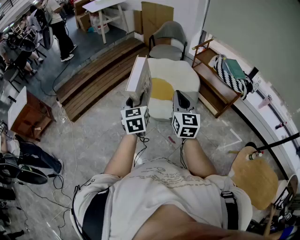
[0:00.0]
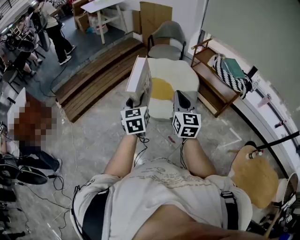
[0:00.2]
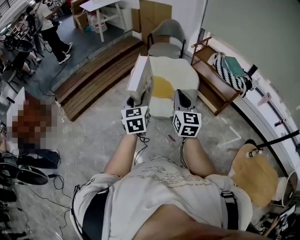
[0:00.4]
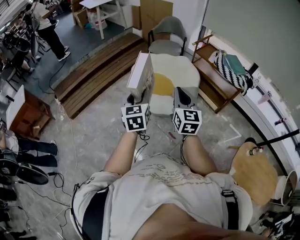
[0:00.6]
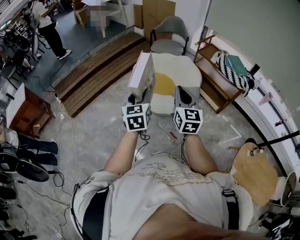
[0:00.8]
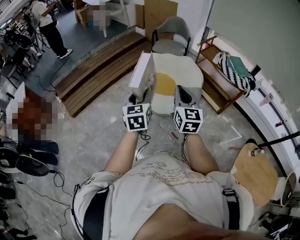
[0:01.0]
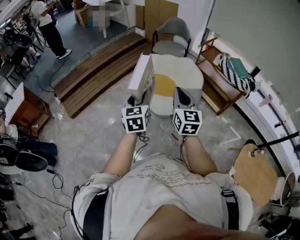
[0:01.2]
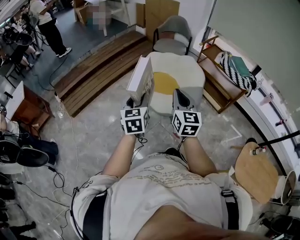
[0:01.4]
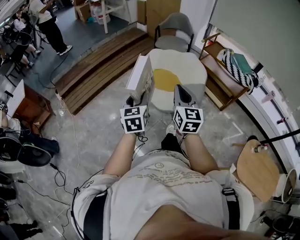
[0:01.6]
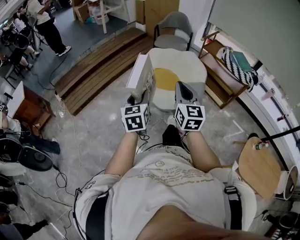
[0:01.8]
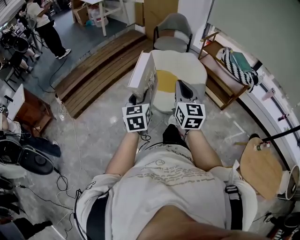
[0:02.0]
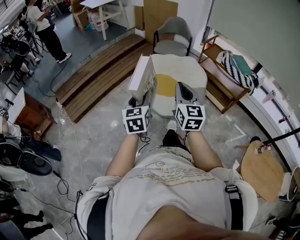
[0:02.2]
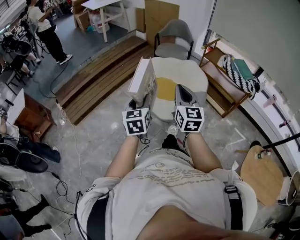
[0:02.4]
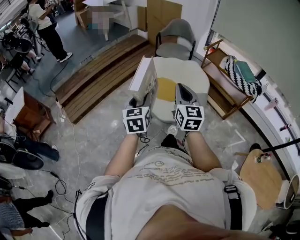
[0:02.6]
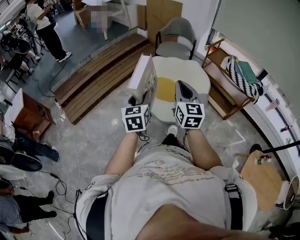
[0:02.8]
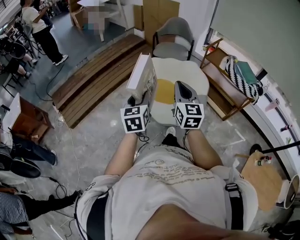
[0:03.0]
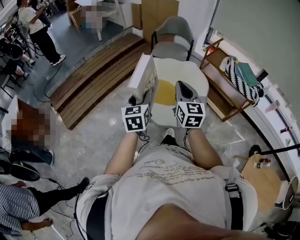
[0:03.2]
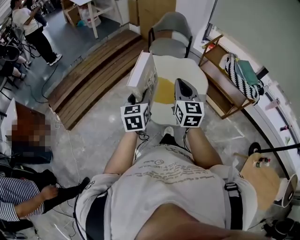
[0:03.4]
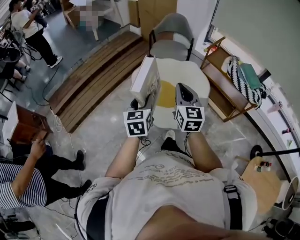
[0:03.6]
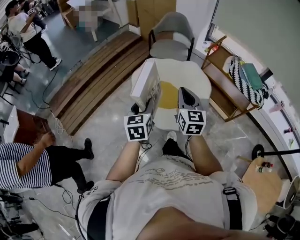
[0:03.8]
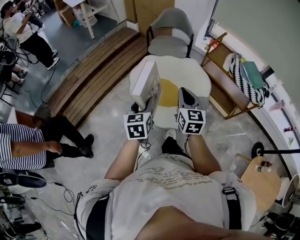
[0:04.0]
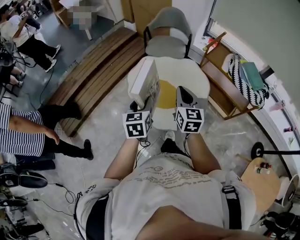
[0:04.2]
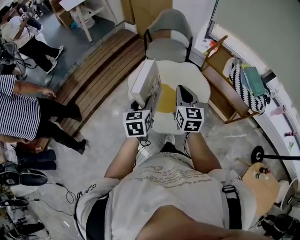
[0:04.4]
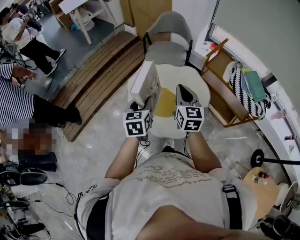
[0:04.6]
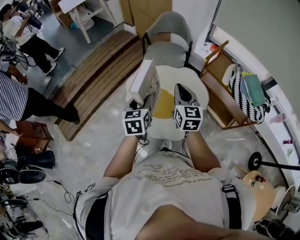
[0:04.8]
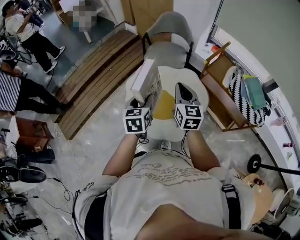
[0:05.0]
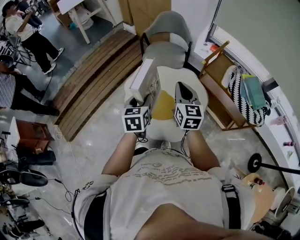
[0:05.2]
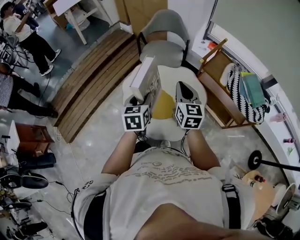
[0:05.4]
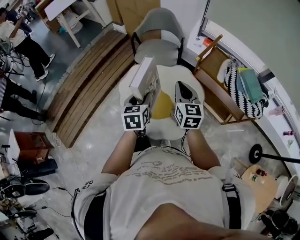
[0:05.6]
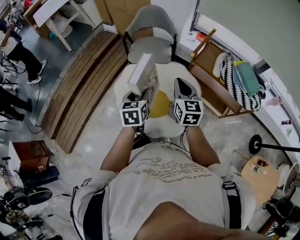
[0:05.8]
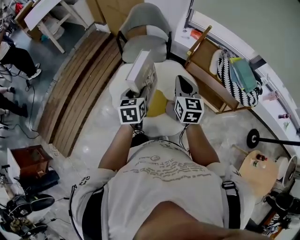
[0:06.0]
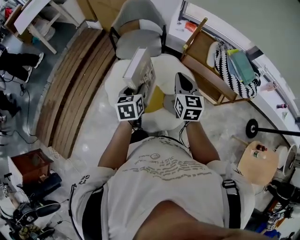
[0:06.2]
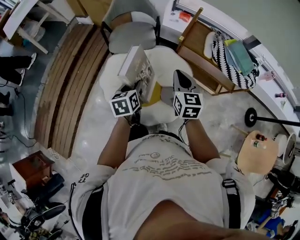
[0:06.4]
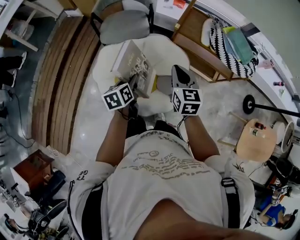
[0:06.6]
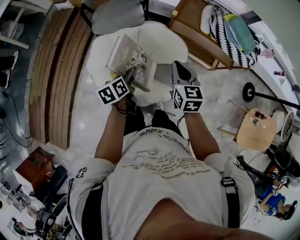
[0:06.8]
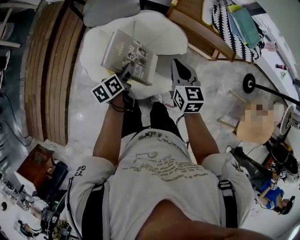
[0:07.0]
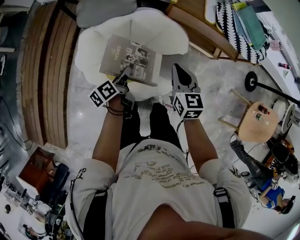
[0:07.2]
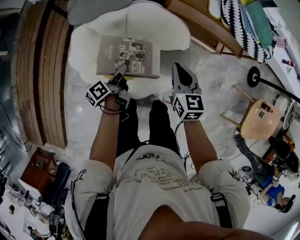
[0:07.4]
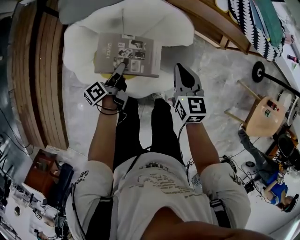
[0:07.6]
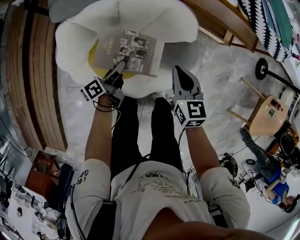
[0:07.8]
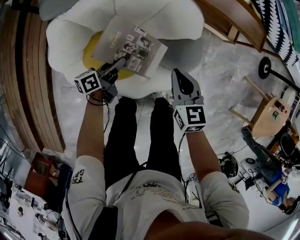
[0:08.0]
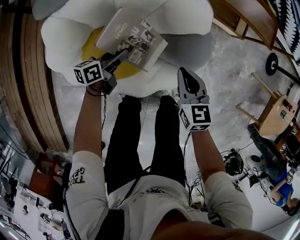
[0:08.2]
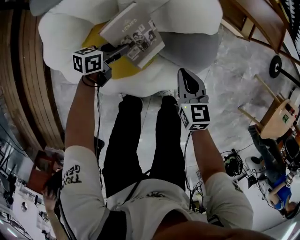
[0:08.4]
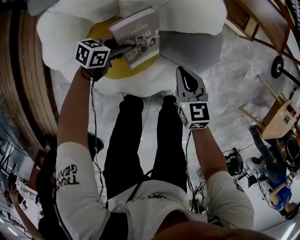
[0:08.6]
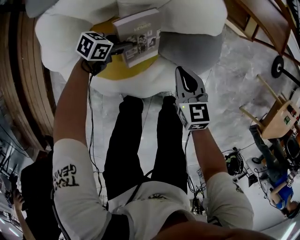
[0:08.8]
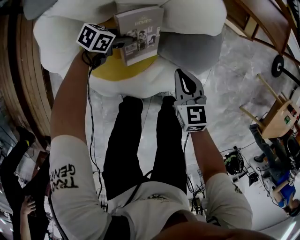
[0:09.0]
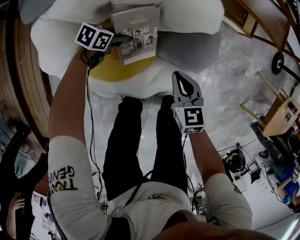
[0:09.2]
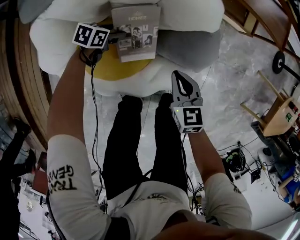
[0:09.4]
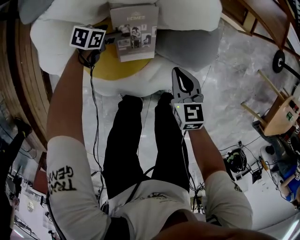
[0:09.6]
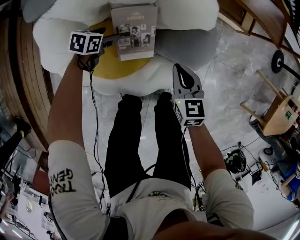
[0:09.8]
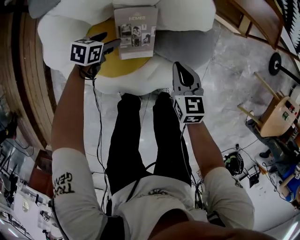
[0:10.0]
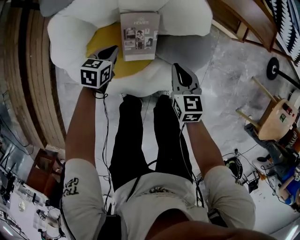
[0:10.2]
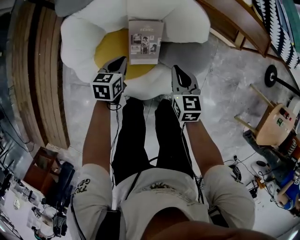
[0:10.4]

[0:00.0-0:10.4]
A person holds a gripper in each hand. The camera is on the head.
0:00.0 to 0:01.4: Both grippers travel together to the left, about 10 cm.
0:01.4 to 0:03.0: The grippers both shift forward by about 15 cm.
0:03.0 to 0:04.4: Both grippers travel together forward, about 20 cm.
0:04.4 to 0:06.0: The right gripper goes roughly 15 cm forward and to the right. The left gripper travels forward by approximately 20 cm.
0:06.0 to 0:07.4: The two grippers go about 30 cm downward. The left gripper rotates around the line of its fingers by approximately 60 degrees, counterclockwise from behind. Meanwhile the right gripper changes its angle by approximately 20 degrees.
0:07.4 to 0:09.0: Both grippers travel together downward, some 30 cm. The left gripper turns by about 80 degrees.
0:09.0 to 0:10.4: The right gripper goes about 10 cm upward. The left gripper shifts approximately 20 cm upward, rotates approximately 40 degrees, and closes.

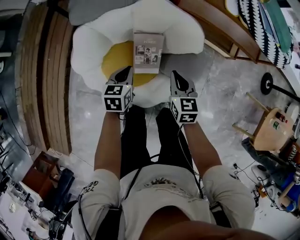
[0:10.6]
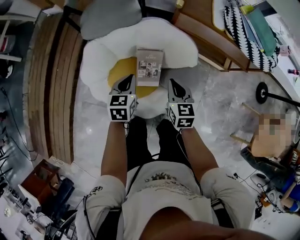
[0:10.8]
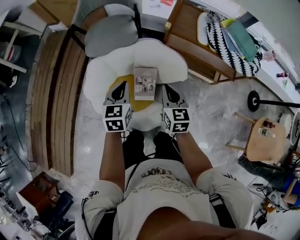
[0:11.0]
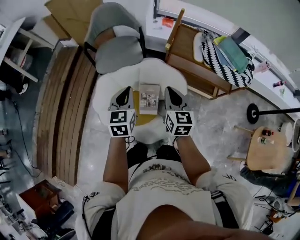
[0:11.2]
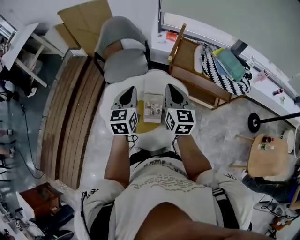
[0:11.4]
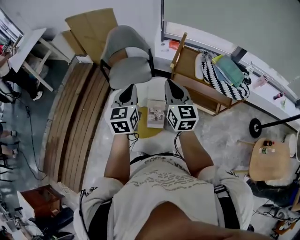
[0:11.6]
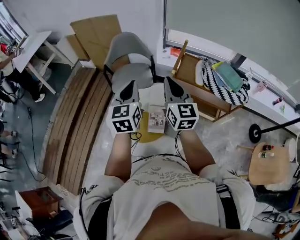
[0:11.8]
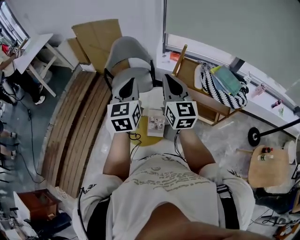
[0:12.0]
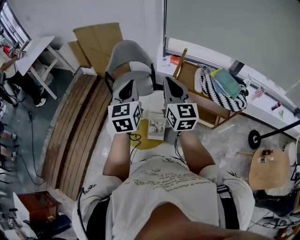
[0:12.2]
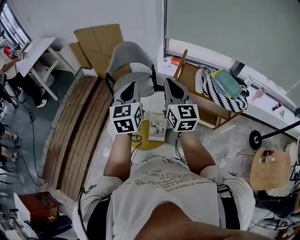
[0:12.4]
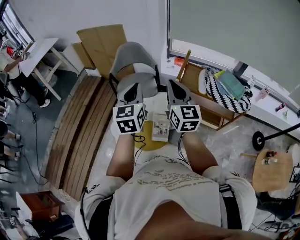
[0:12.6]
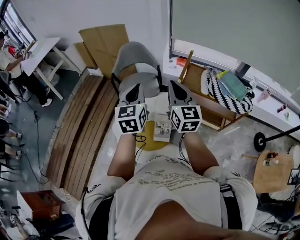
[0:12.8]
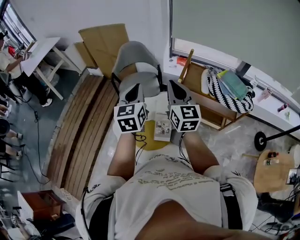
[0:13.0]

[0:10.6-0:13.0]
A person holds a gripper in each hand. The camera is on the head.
0:10.6 to 0:11.8: Both grippers travel together upward, roughly 50 cm. The left gripper tilts its fingers some 40 degrees upward, while the right gripper angles its fingers upward, by some 40 degrees.
0:11.8 to 0:13.0: There are only small adjustments of the grippers.

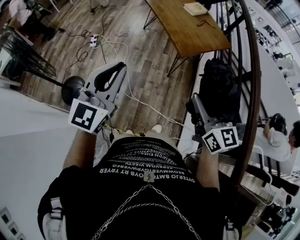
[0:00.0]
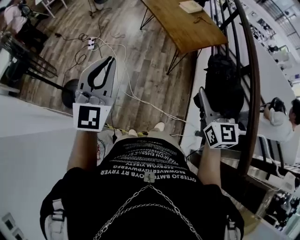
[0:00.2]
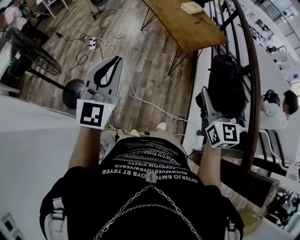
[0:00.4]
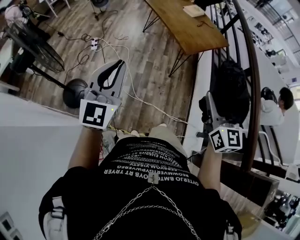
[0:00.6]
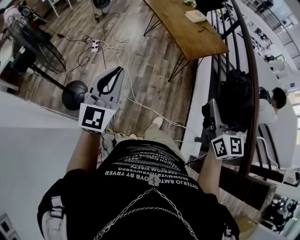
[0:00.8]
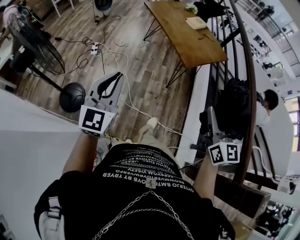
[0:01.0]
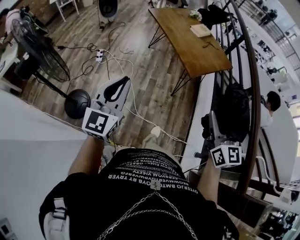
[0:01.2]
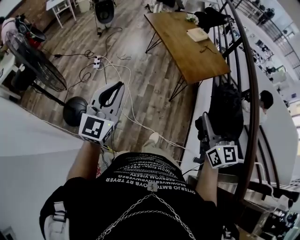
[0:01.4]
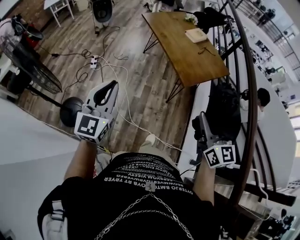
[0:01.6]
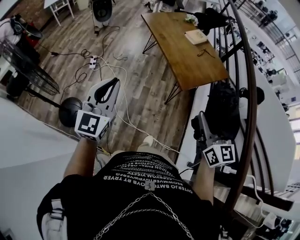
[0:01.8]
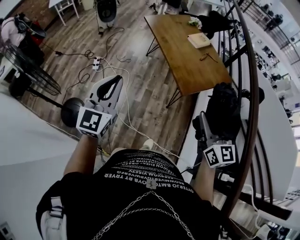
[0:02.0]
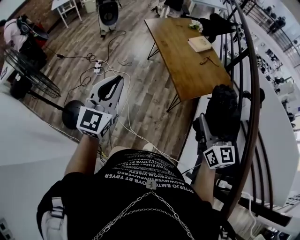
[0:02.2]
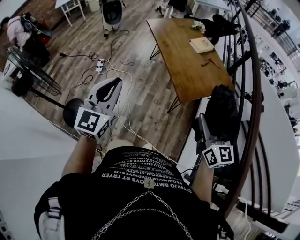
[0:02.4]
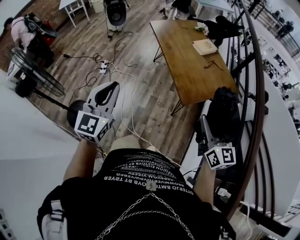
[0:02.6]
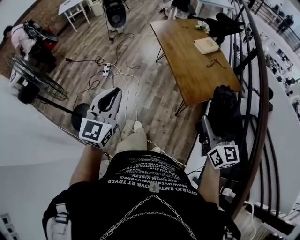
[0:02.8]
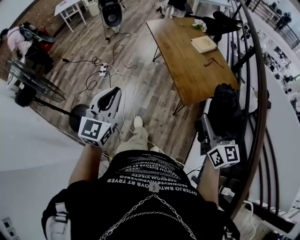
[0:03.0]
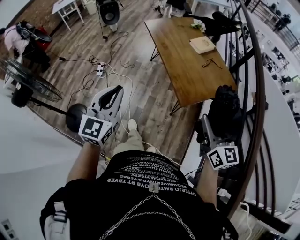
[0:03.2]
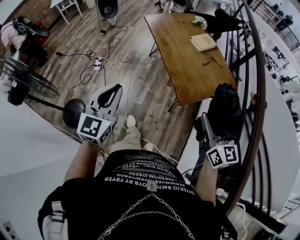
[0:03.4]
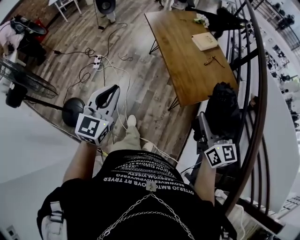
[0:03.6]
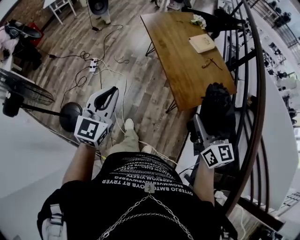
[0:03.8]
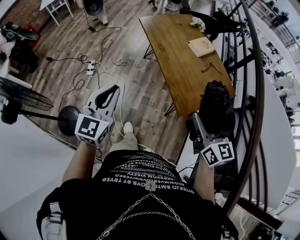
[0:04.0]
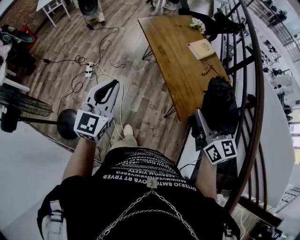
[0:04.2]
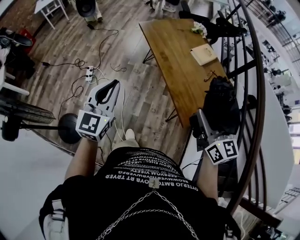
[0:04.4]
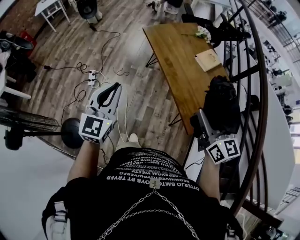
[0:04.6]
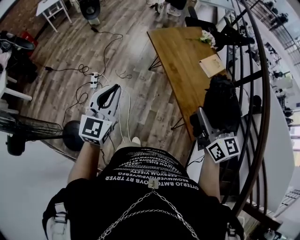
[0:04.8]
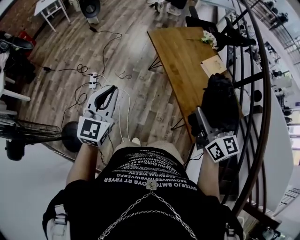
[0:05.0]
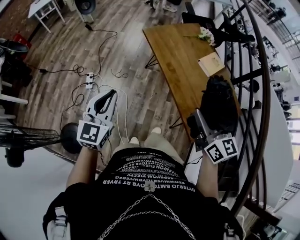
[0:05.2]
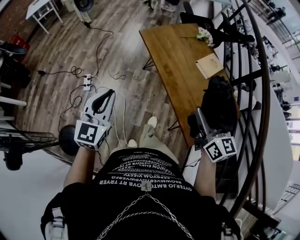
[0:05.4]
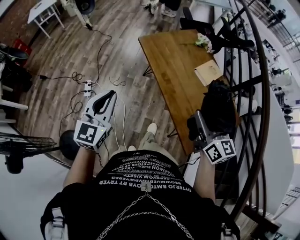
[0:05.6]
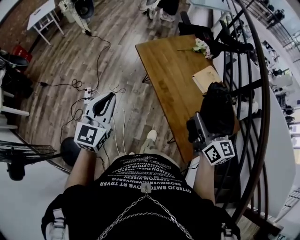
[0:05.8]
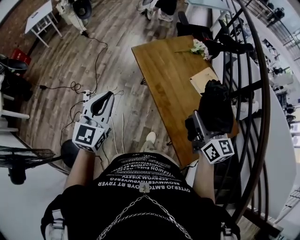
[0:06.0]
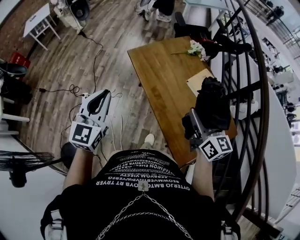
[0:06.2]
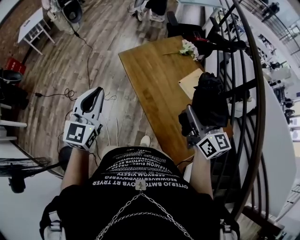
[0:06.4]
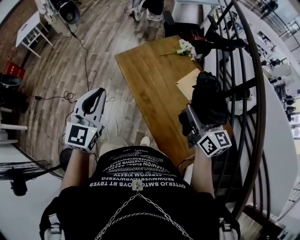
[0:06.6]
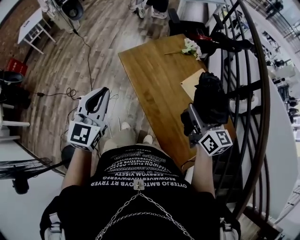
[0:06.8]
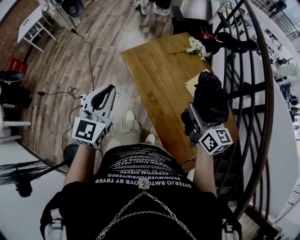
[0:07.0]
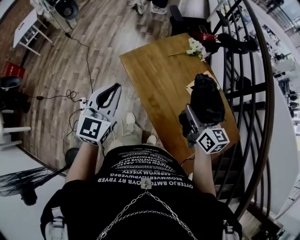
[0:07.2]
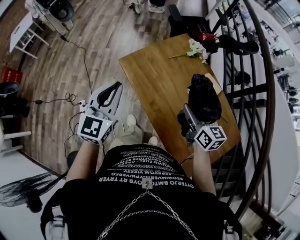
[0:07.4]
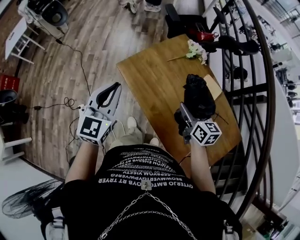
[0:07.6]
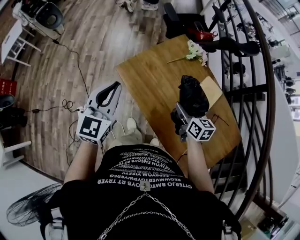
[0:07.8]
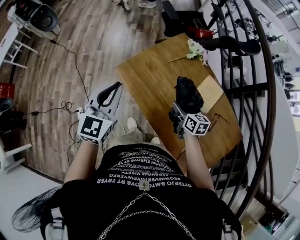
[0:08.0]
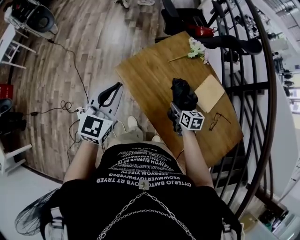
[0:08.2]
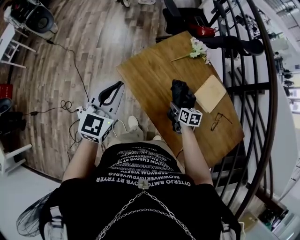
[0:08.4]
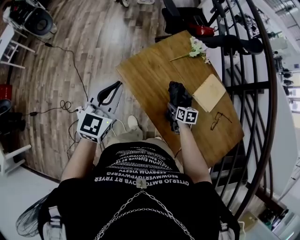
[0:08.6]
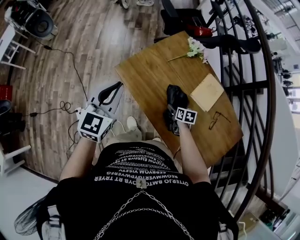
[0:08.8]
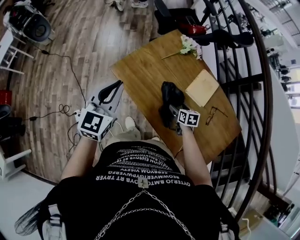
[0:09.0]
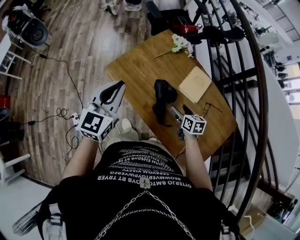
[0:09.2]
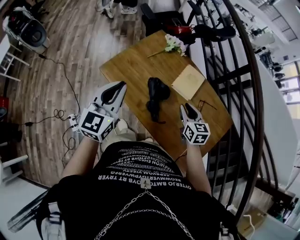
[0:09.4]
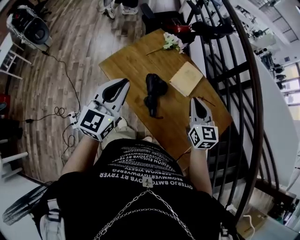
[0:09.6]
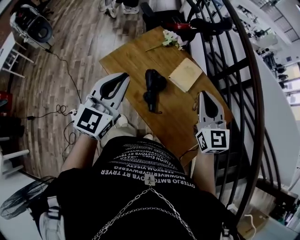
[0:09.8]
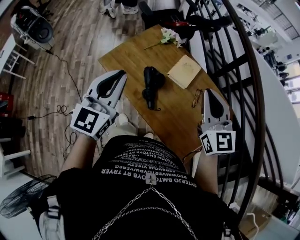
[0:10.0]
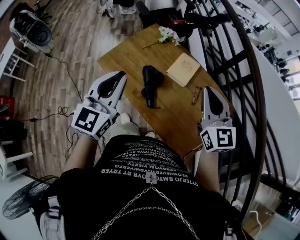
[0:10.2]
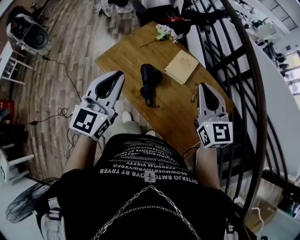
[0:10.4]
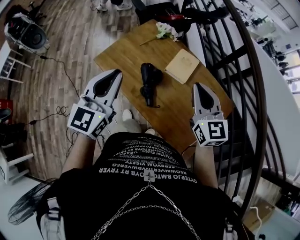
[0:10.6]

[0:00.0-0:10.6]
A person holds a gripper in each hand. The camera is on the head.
0:00.0 to 0:01.6: The right gripper goes roughly 5 cm forward. The left gripper moves to the left and forward, about 15 cm.
0:01.6 to 0:03.0: The two grippers go some 15 cm forward and to the right.
0:03.0 to 0:04.6: The two grippers go approximately 30 cm forward and to the left.
0:04.6 to 0:06.0: The two grippers go some 20 cm forward.
0:06.0 to 0:07.6: The right gripper goes some 25 cm forward and downward, and changes its angle by roughly 20 degrees, while the left gripper moves forward, approximately 25 cm.
0:07.6 to 0:09.0: The right gripper shifts approximately 20 cm downward, and turns by some 30 degrees.
0:09.0 to 0:10.6: The left gripper heads to the right, upward and backward, covering about 20 cm. Meanwhile the right gripper heads upward, covering about 40 cm, tips its fingers upward by roughly 40 degrees, and closes.
